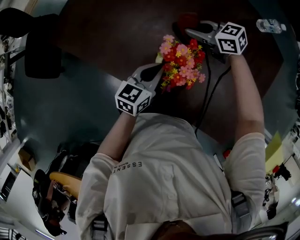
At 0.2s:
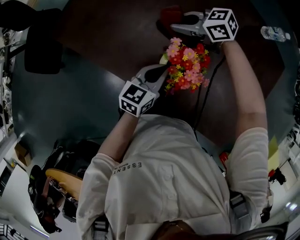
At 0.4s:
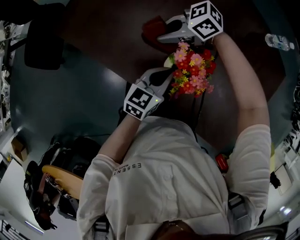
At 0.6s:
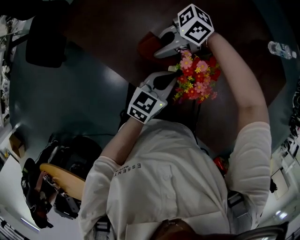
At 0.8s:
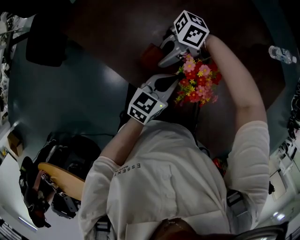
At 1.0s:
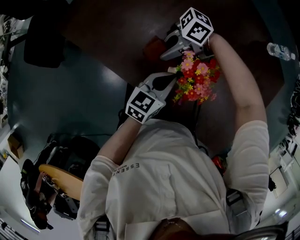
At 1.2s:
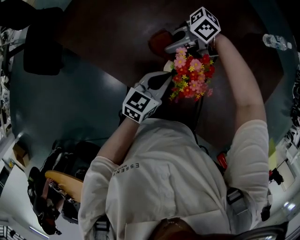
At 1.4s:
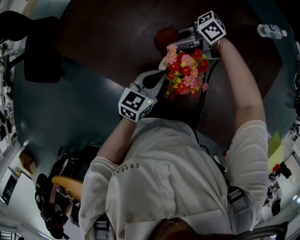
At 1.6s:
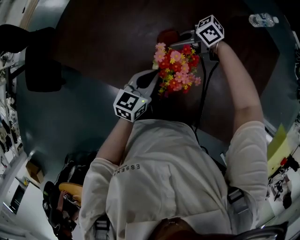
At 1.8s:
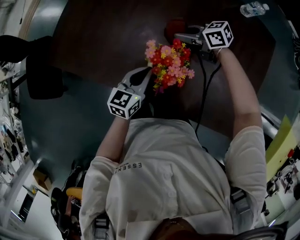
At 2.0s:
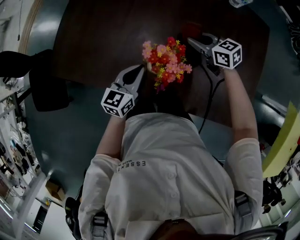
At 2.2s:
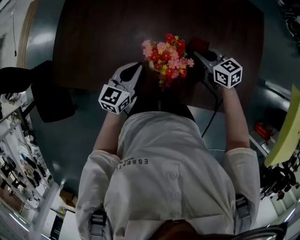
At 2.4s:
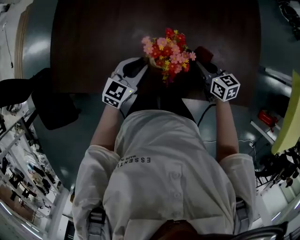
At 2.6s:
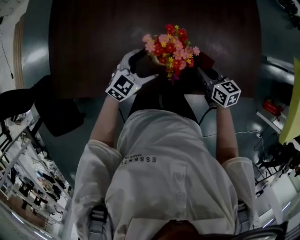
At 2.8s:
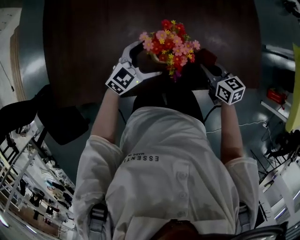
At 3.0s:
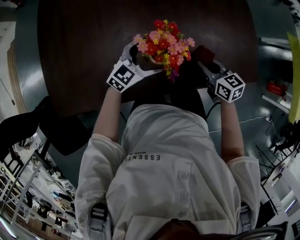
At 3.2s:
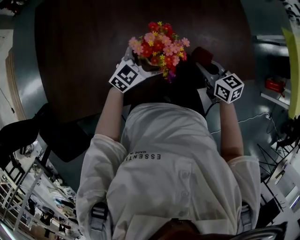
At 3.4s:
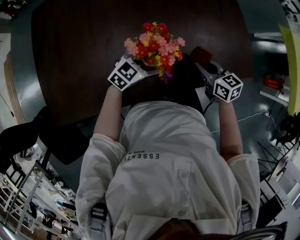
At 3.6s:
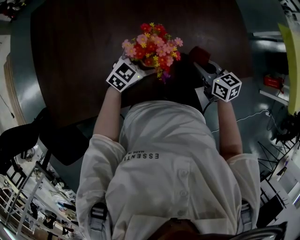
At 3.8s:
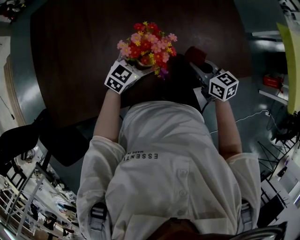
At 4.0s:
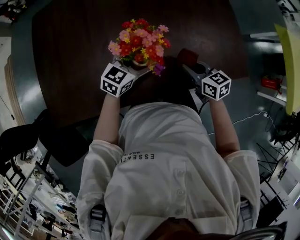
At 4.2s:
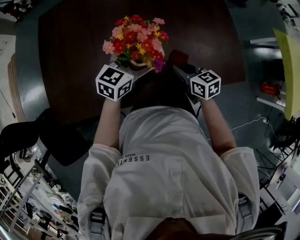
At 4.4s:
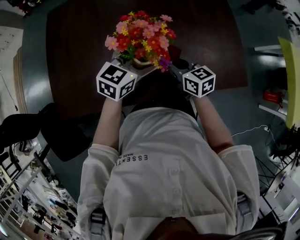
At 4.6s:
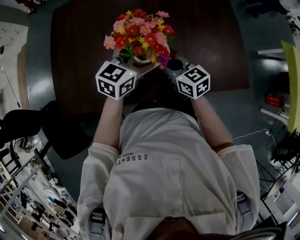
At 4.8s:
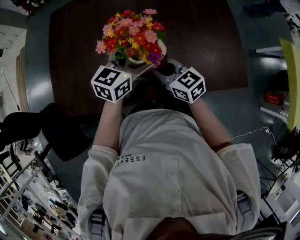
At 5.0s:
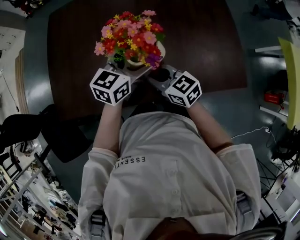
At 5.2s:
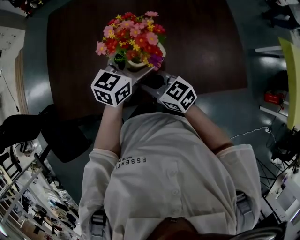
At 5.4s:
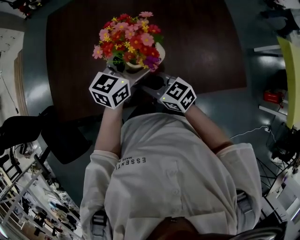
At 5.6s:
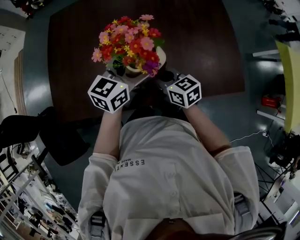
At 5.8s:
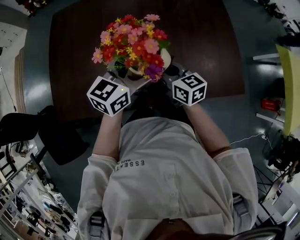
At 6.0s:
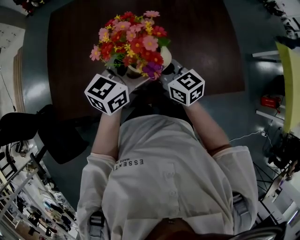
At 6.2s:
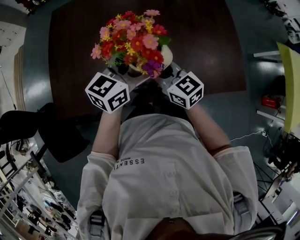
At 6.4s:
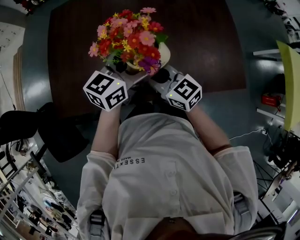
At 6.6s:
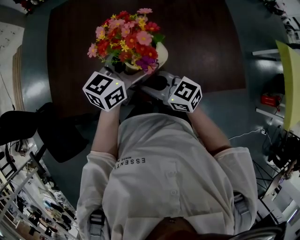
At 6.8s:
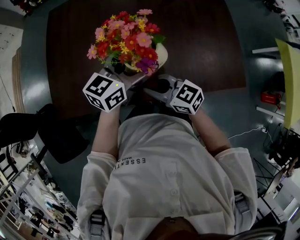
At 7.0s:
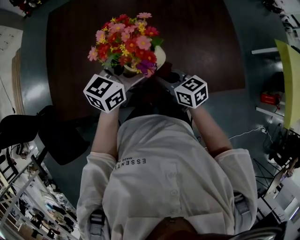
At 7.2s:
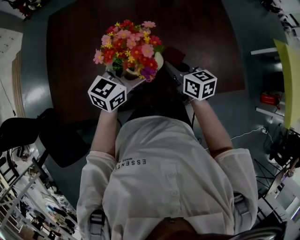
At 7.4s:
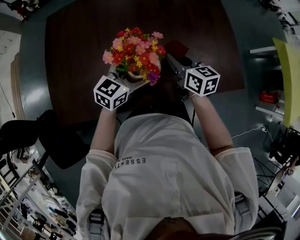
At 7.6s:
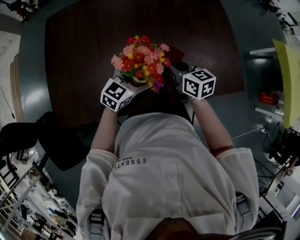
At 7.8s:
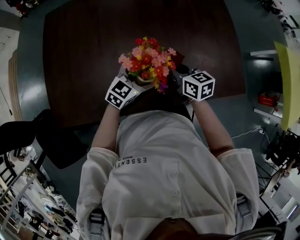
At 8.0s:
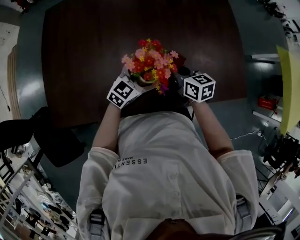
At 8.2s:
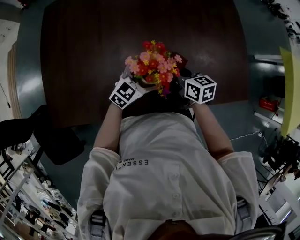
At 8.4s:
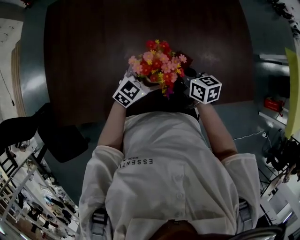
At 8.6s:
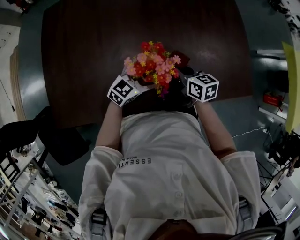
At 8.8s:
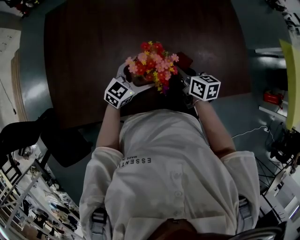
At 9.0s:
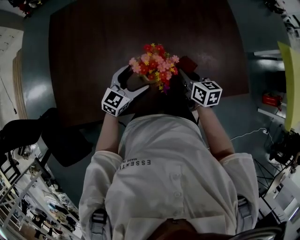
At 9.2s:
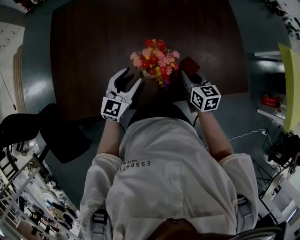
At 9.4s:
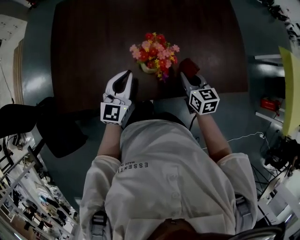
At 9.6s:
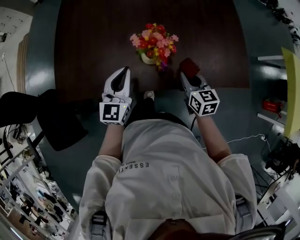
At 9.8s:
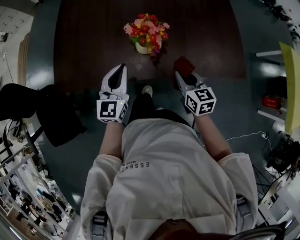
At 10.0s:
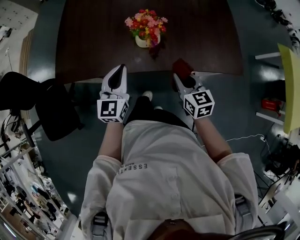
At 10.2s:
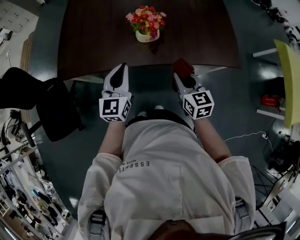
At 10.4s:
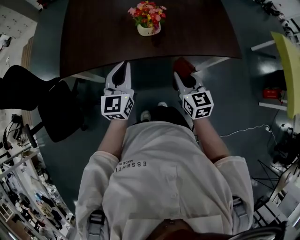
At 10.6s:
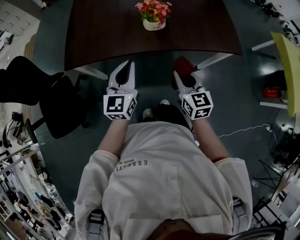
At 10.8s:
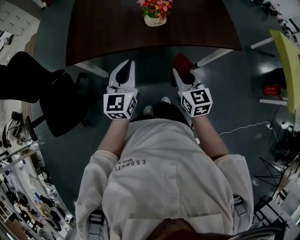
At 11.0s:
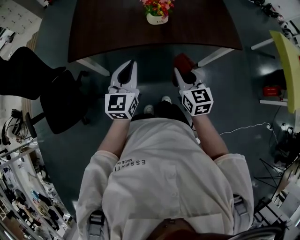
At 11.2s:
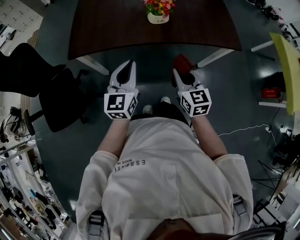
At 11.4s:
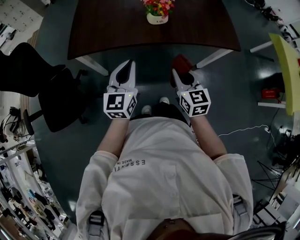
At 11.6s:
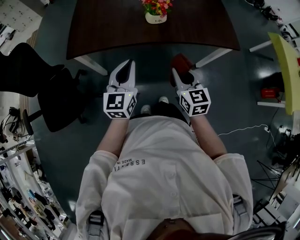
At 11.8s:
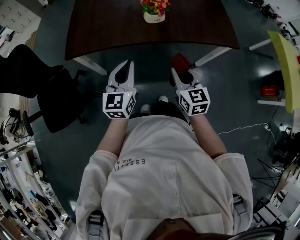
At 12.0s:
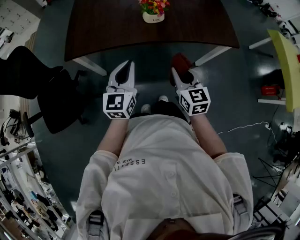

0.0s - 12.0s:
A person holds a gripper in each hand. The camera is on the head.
0.0s - 1.6s: The right gripper changes its angle by roughly 30 degrees.
1.6s - 3.0s: The right gripper shifts by about 25 cm, and rotates approximately 90 degrees, while the left gripper changes its angle by approximately 70 degrees, and opens up.
3.0s - 4.4s: The right gripper goes about 10 cm to the left and upward; the left gripper heads upward, covering about 15 cm.
4.4s - 6.0s: The right gripper is displaced to the left and upward by approximately 10 cm, while the left gripper heads upward, covering some 5 cm.
6.0s - 7.6s: The right gripper shifts roughly 5 cm to the right, and reaches approximately 10 cm backward, then returns, while the left gripper travels downward by some 15 cm.
7.6s - 9.0s: The right gripper shifts roughly 5 cm downward, while the left gripper shifts roughly 5 cm to the left.
9.0s - 10.4s: The left gripper moves backward and upward, some 30 cm, changes its angle by some 40 degrees, and closes up. Meanwhile the right gripper heads backward, covering roughly 30 cm, and turns by about 30 degrees.
10.4s - 12.0s: The grippers both shift backward by roughly 10 cm.

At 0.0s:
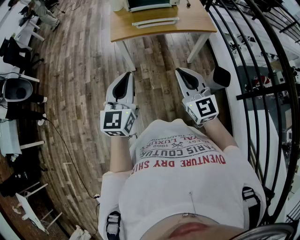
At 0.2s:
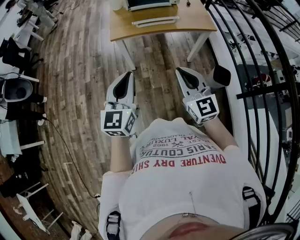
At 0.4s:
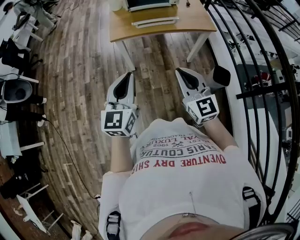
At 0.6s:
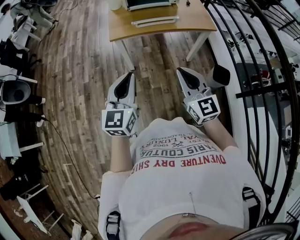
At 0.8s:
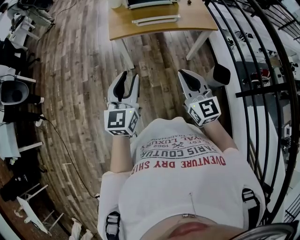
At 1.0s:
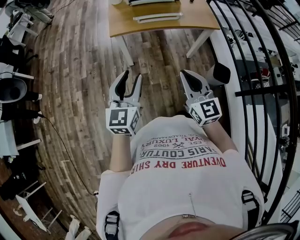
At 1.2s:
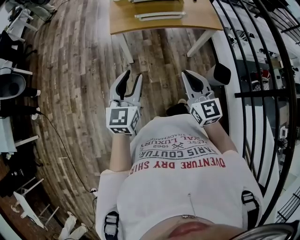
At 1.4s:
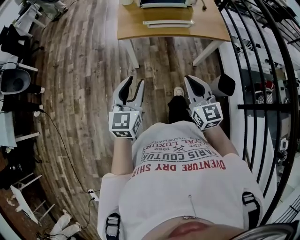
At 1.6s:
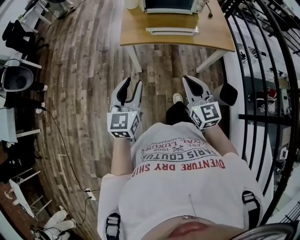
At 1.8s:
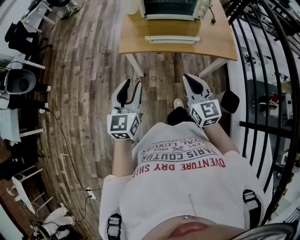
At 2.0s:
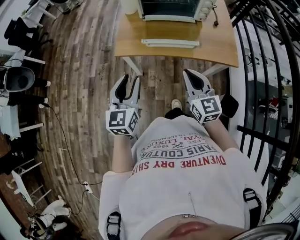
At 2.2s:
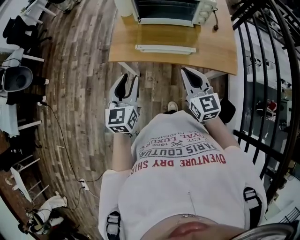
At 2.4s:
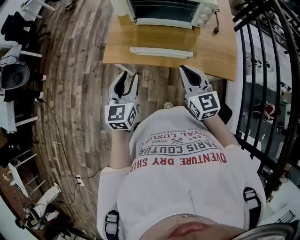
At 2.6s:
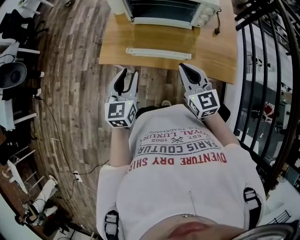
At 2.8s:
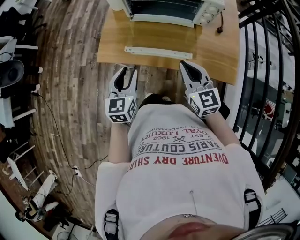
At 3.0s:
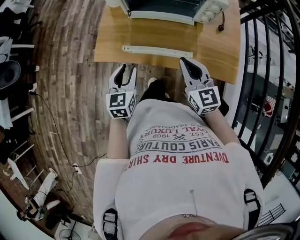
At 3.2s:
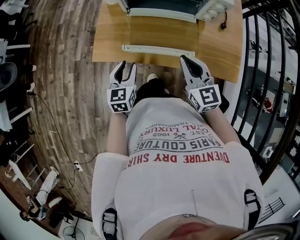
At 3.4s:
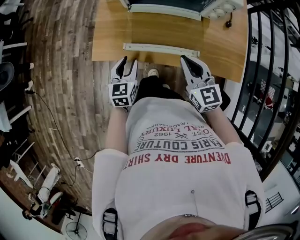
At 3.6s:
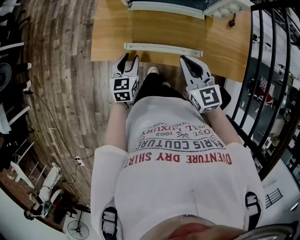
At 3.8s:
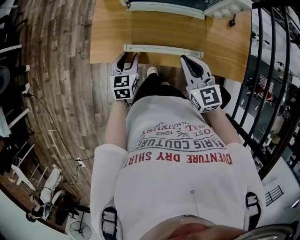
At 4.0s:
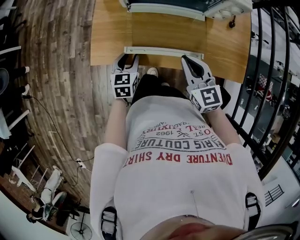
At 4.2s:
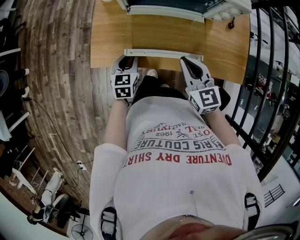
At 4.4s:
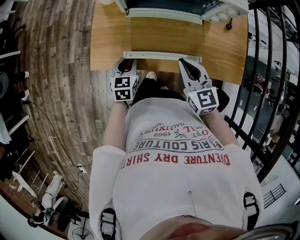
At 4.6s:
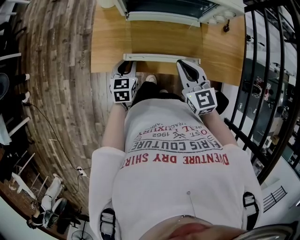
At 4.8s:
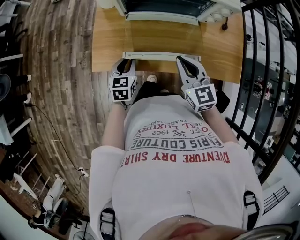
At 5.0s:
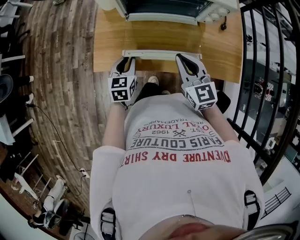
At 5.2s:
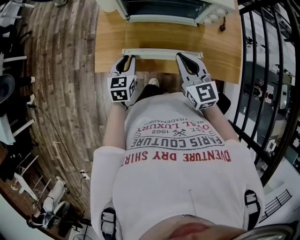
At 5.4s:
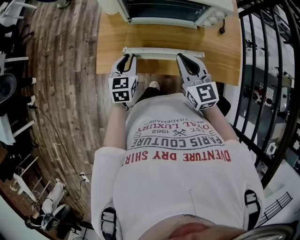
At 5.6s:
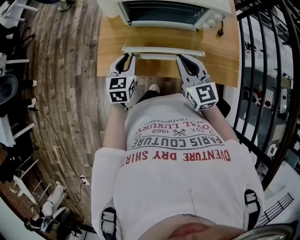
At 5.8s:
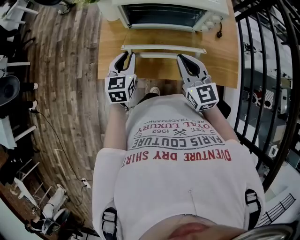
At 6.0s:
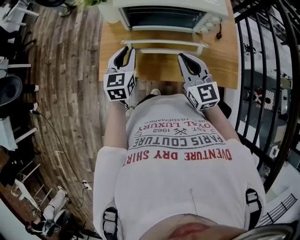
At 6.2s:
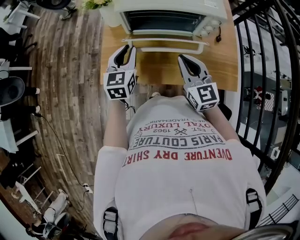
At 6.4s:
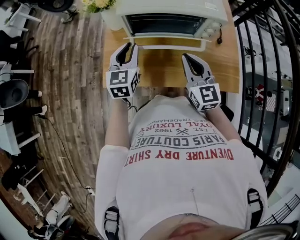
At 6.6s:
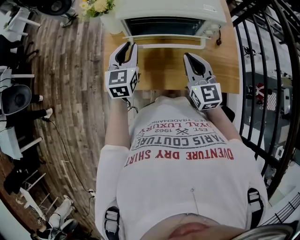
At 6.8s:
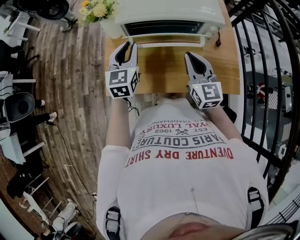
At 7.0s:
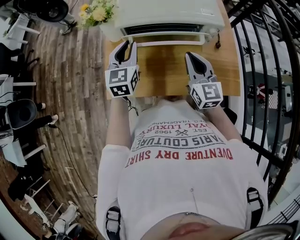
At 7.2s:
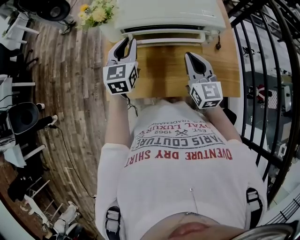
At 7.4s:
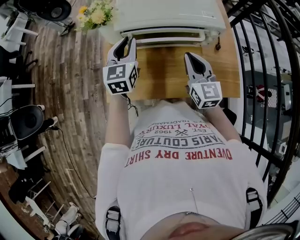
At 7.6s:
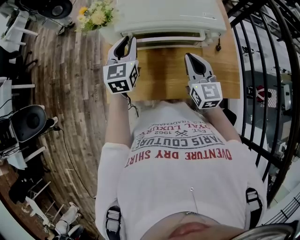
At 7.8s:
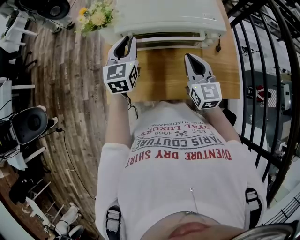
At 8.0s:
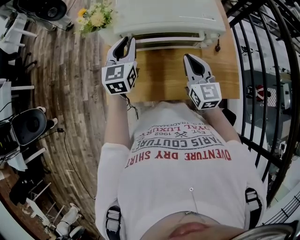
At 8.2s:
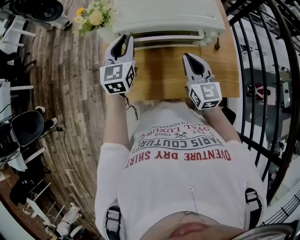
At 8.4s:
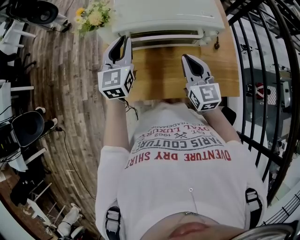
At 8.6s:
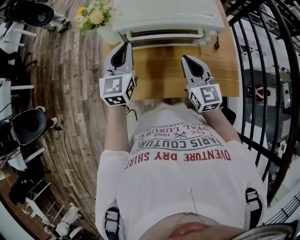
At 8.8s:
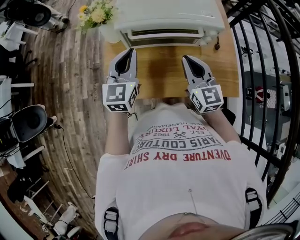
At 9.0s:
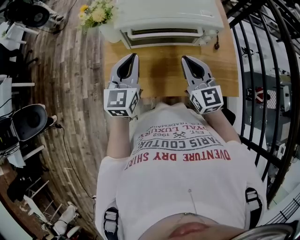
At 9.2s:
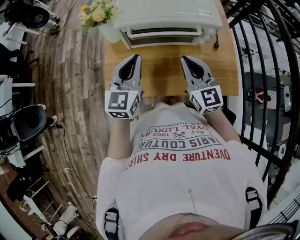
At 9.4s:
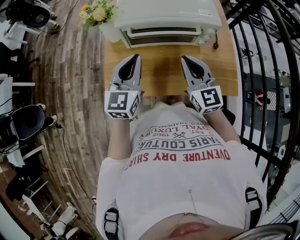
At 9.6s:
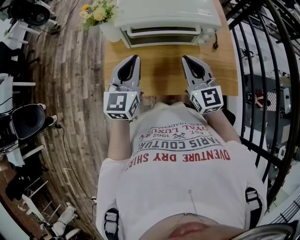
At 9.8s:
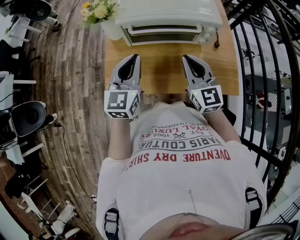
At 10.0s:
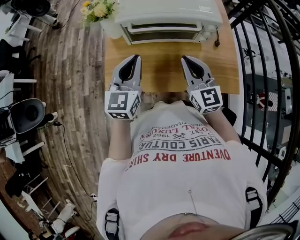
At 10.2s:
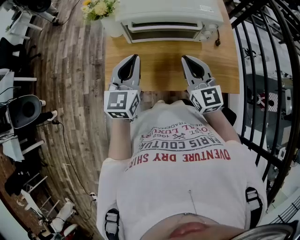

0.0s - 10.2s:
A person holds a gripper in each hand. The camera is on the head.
0.0s - 1.4s: The right gripper moves forward and downward, some 10 cm; the left gripper heads downward and forward, covering about 10 cm, and opens its fingers.
1.4s - 3.0s: Both grippers travel together forward and to the right, some 40 cm. The left gripper turns by about 20 degrees.
3.0s - 4.4s: The left gripper moves downward and forward, roughly 15 cm. Meanwhile the right gripper travels downward by roughly 5 cm.
4.4s - 5.8s: The right gripper shifts roughly 10 cm upward. Meanwhile the left gripper is displaced upward by some 15 cm.
5.8s - 7.2s: The left gripper heads forward and upward, covering about 15 cm, while the right gripper goes approximately 5 cm forward.
7.2s - 8.8s: The left gripper travels backward by some 5 cm.
8.8s - 10.2s: The left gripper travels backward by some 5 cm.

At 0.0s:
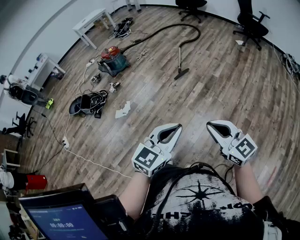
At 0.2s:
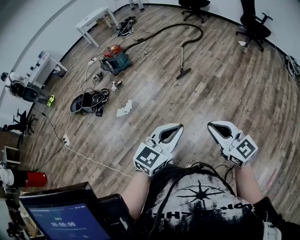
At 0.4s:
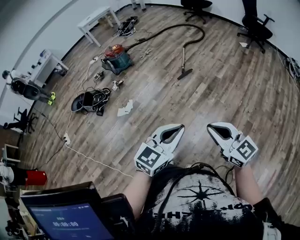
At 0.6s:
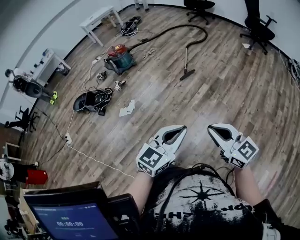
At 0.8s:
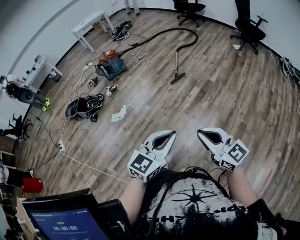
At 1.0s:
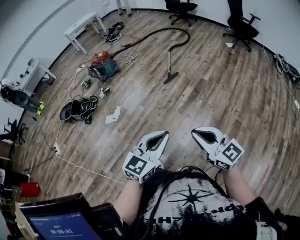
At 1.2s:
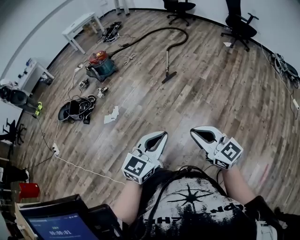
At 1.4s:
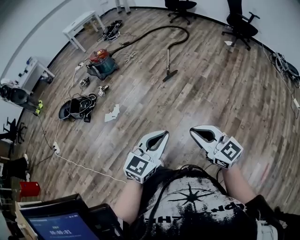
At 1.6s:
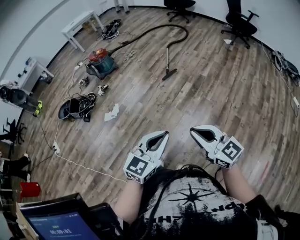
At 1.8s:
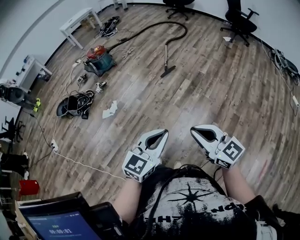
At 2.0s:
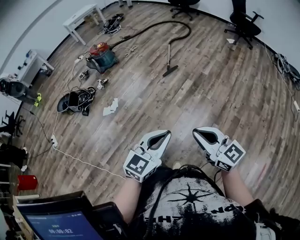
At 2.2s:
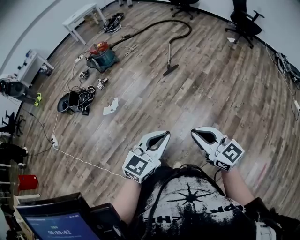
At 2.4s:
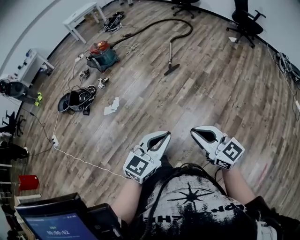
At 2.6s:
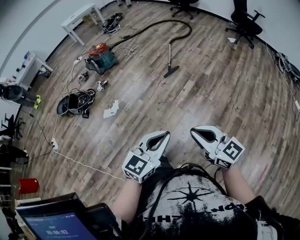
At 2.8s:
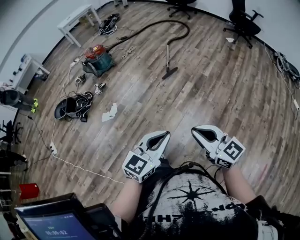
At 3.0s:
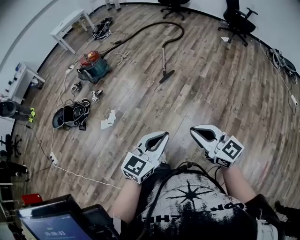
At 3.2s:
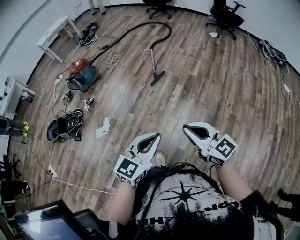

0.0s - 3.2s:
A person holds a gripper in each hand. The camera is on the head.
0.0s - 1.6s: The grippers make only small movements.
1.6s - 3.2s: The grippers both shift forward by roughly 20 cm.
